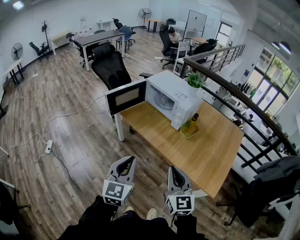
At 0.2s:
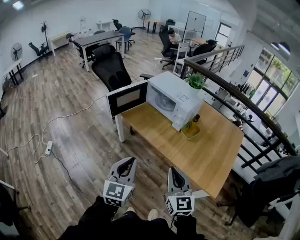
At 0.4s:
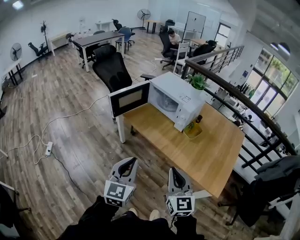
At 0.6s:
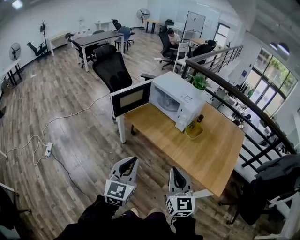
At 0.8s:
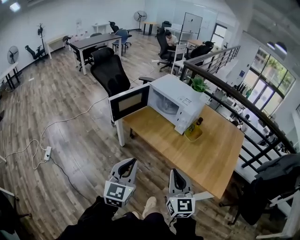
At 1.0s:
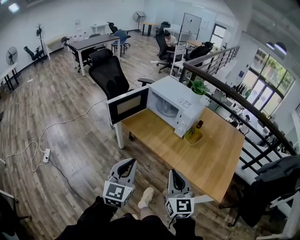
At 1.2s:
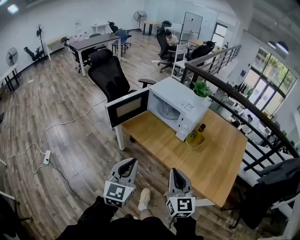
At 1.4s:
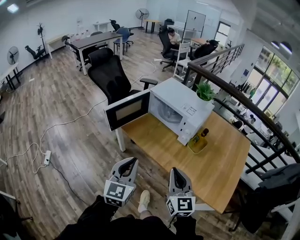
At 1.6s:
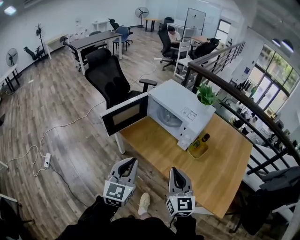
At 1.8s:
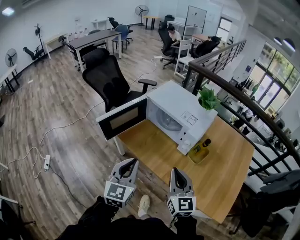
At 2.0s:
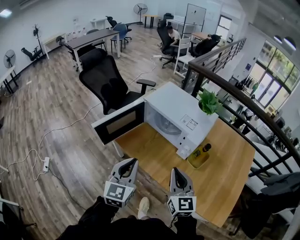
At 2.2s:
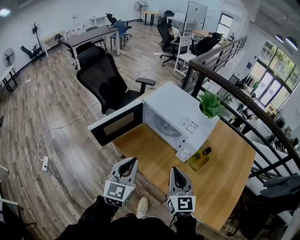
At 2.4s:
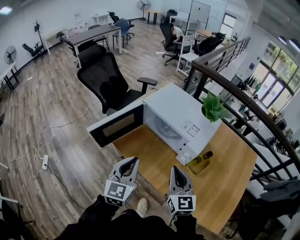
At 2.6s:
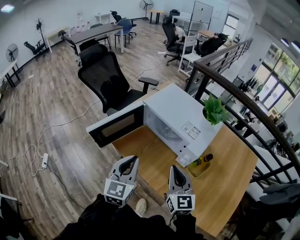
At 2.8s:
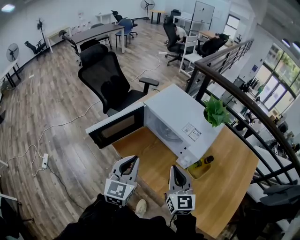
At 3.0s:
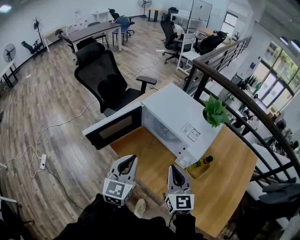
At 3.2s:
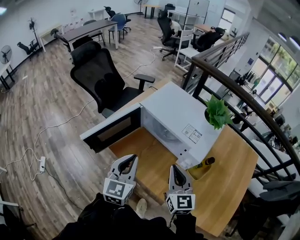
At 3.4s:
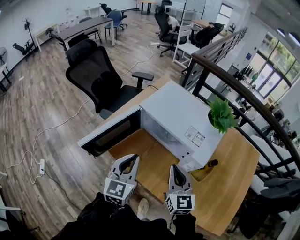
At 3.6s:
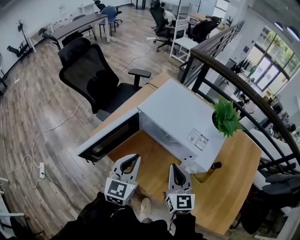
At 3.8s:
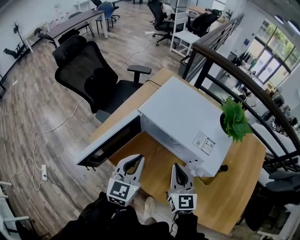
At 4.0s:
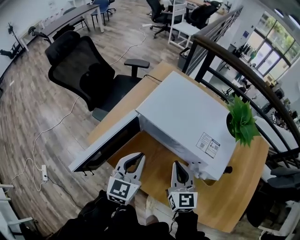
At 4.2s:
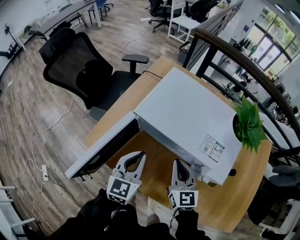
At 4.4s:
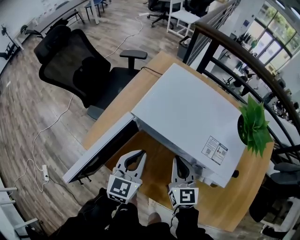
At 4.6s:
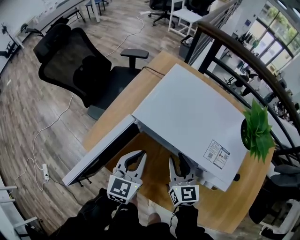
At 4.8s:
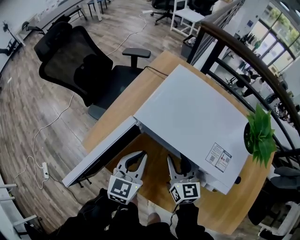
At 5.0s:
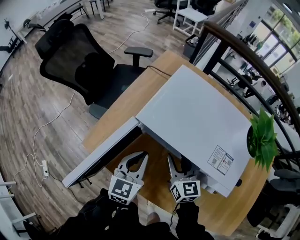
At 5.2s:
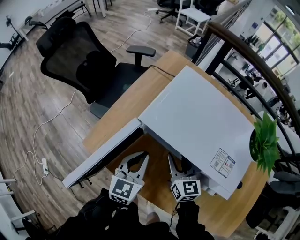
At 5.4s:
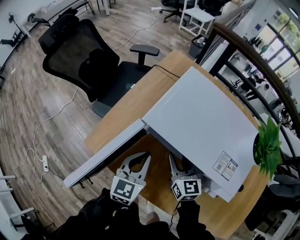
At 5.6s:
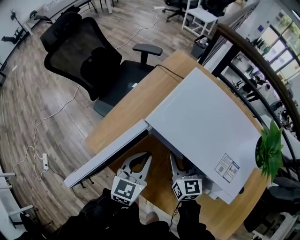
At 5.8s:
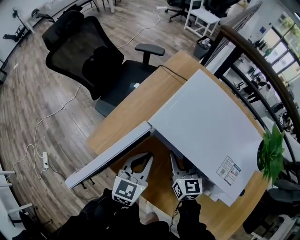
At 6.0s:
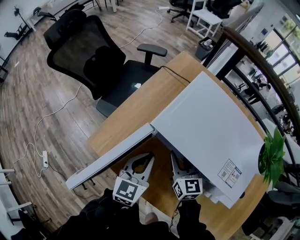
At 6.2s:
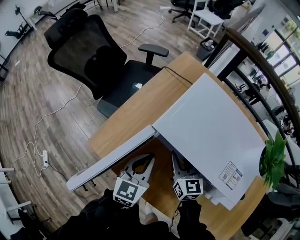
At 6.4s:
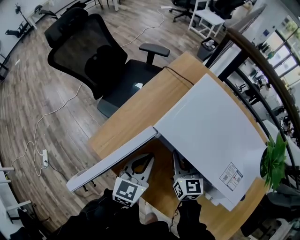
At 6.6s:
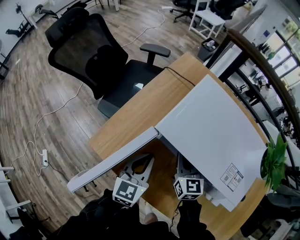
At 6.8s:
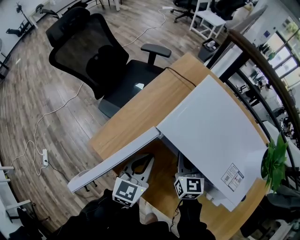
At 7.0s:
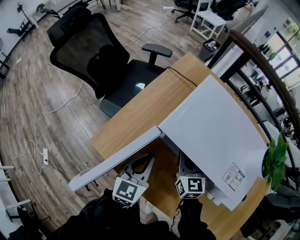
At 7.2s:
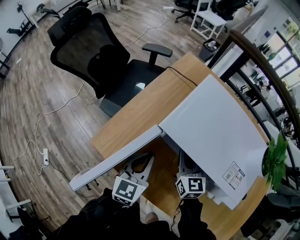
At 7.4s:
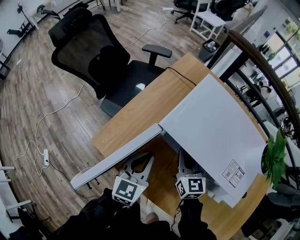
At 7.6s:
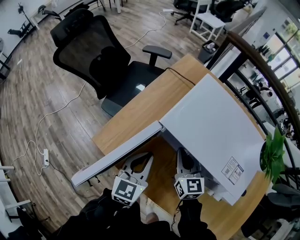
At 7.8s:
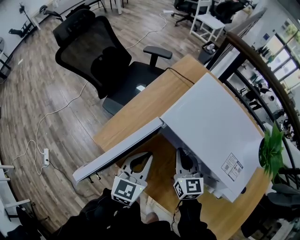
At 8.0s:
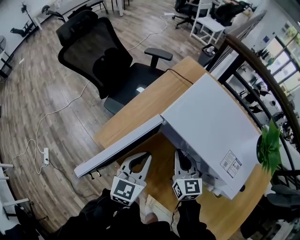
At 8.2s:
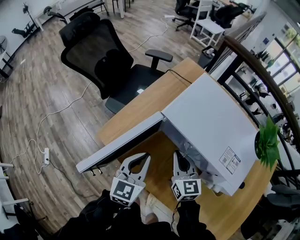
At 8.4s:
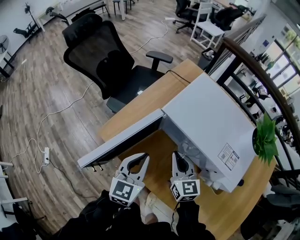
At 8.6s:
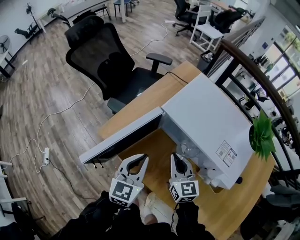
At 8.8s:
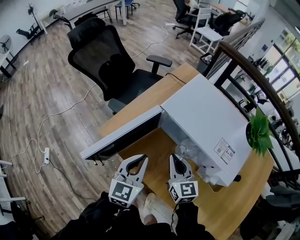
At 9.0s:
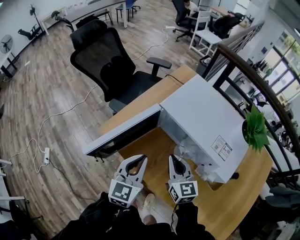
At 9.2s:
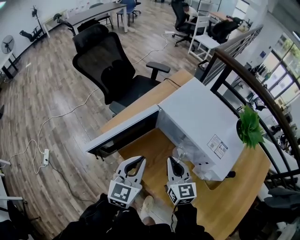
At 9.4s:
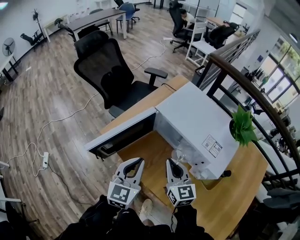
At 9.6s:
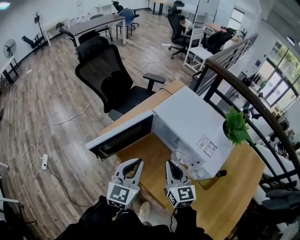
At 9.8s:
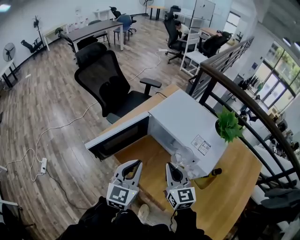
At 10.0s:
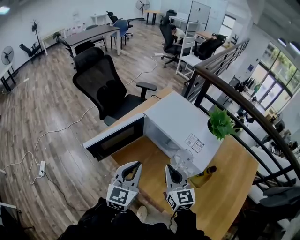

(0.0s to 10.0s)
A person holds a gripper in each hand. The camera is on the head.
0.0s - 1.4s: The left gripper heads forward, covering approximately 15 cm. The right gripper heads forward and to the left, covering roughly 15 cm.
1.4s - 2.8s: The grippers both shift forward by approximately 25 cm.
2.8s - 4.2s: Both grippers move forward and downward, some 25 cm.
4.2s - 5.8s: The left gripper ends up approximately 5 cm from where it was; the right gripper travels forward, downward and to the left by some 15 cm, and opens its fingers.
5.8s - 7.2s: The right gripper closes its fingers.
7.2s - 8.6s: The two grippers go approximately 10 cm backward and upward.
8.6s - 10.0s: Both grippers travel together backward, upward and to the right, approximately 20 cm.

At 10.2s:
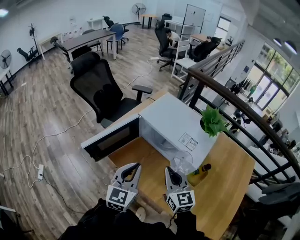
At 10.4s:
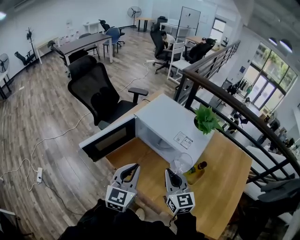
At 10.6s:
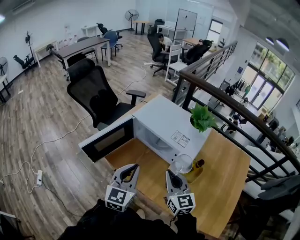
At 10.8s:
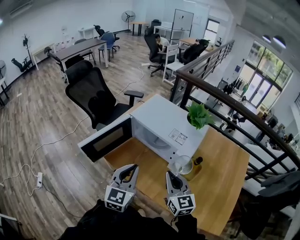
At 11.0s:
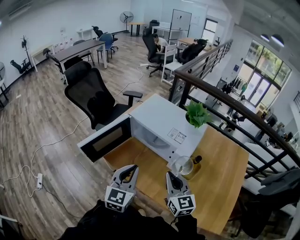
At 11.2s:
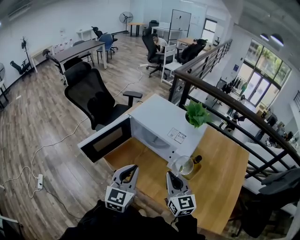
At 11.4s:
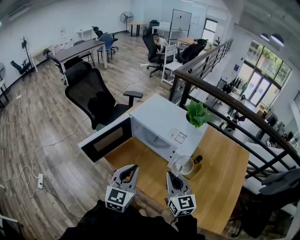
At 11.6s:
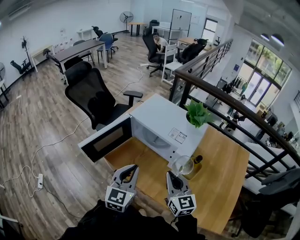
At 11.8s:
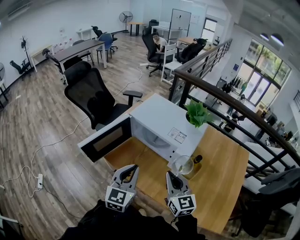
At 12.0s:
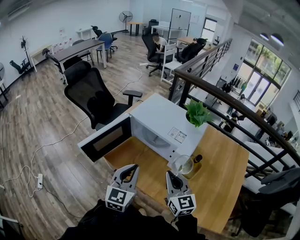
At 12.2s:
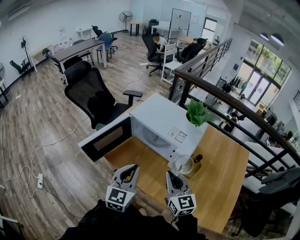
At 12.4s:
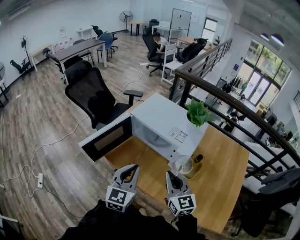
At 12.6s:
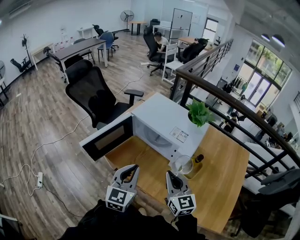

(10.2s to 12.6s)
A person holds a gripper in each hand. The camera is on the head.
10.2s - 11.4s: The grippers both shift backward by about 5 cm.
11.4s - 12.6s: The two grippers keep their place.

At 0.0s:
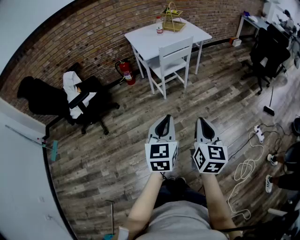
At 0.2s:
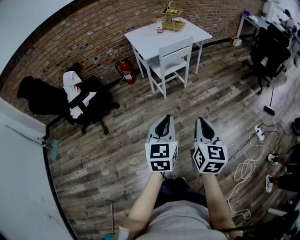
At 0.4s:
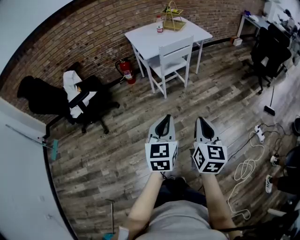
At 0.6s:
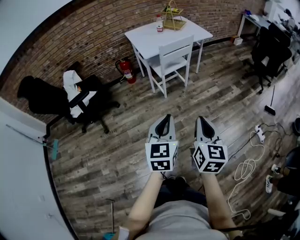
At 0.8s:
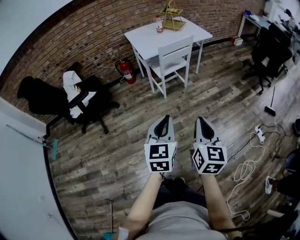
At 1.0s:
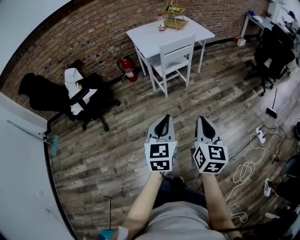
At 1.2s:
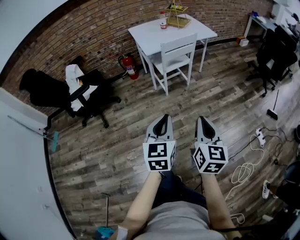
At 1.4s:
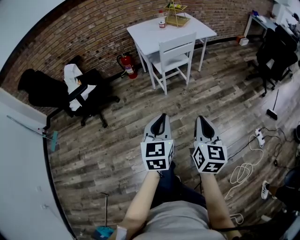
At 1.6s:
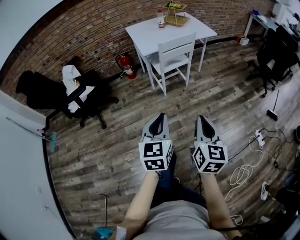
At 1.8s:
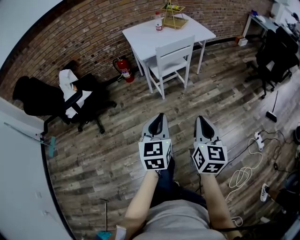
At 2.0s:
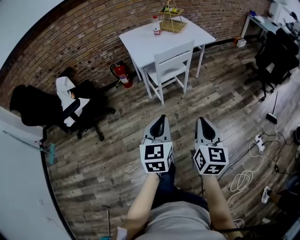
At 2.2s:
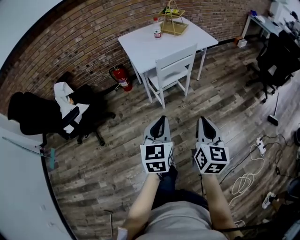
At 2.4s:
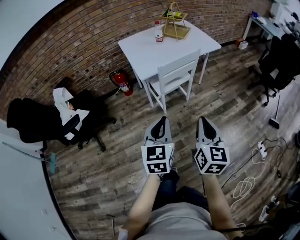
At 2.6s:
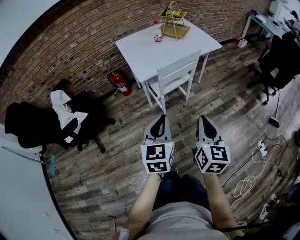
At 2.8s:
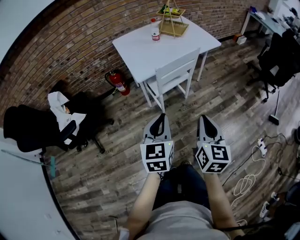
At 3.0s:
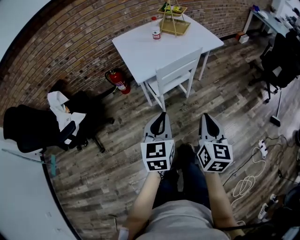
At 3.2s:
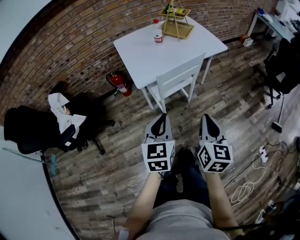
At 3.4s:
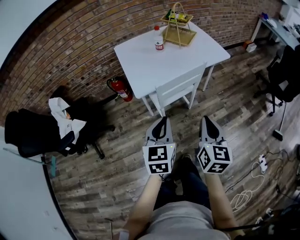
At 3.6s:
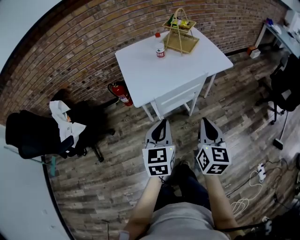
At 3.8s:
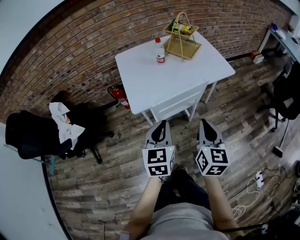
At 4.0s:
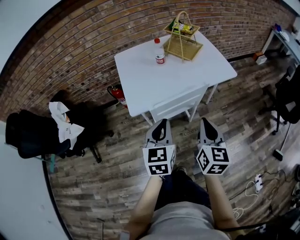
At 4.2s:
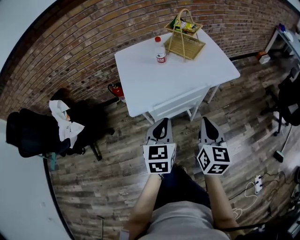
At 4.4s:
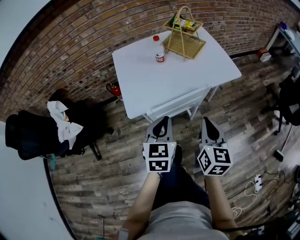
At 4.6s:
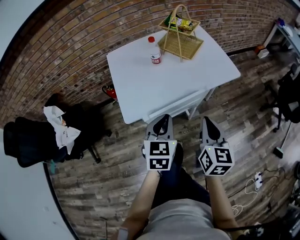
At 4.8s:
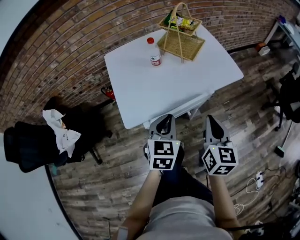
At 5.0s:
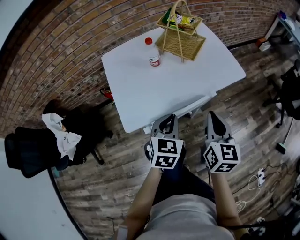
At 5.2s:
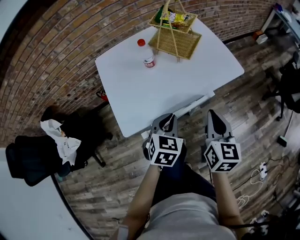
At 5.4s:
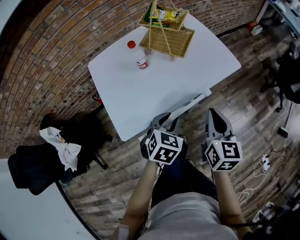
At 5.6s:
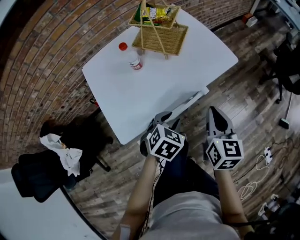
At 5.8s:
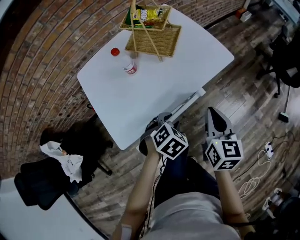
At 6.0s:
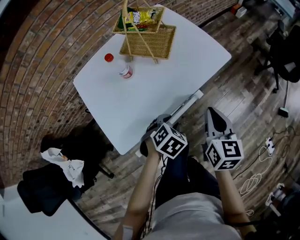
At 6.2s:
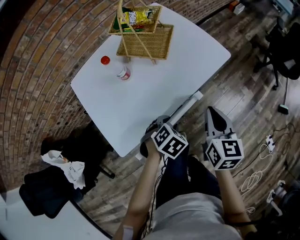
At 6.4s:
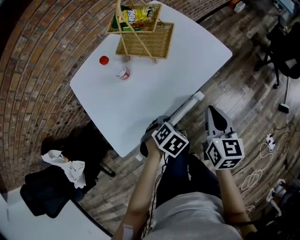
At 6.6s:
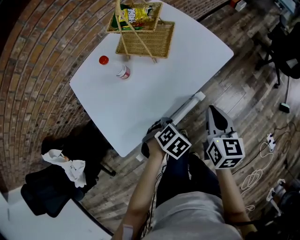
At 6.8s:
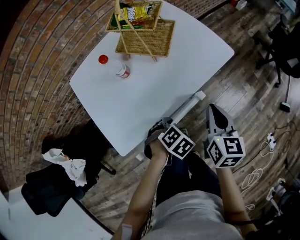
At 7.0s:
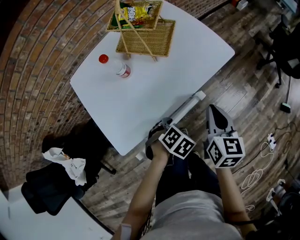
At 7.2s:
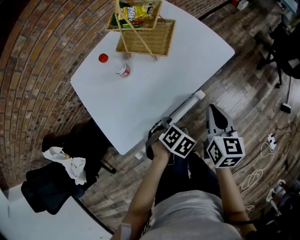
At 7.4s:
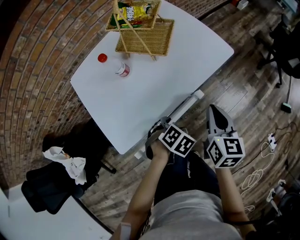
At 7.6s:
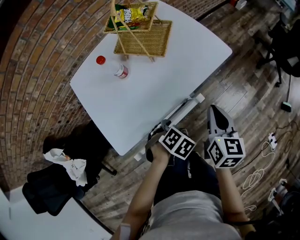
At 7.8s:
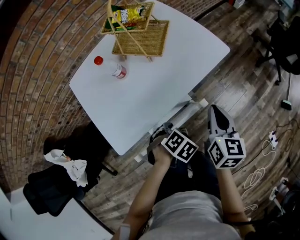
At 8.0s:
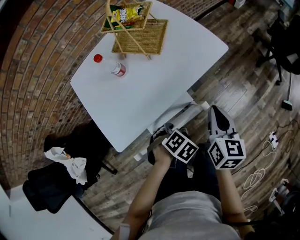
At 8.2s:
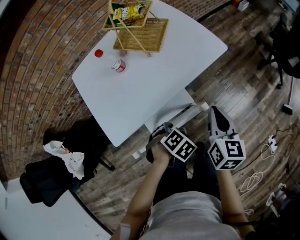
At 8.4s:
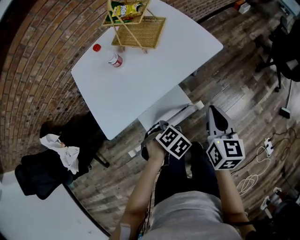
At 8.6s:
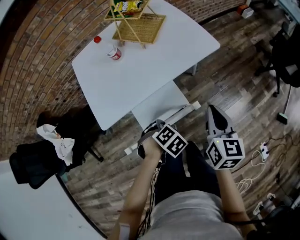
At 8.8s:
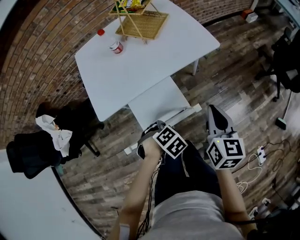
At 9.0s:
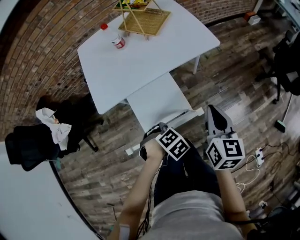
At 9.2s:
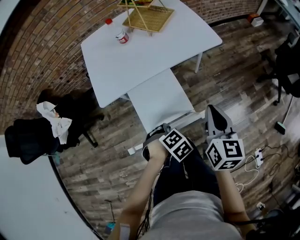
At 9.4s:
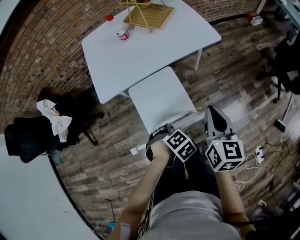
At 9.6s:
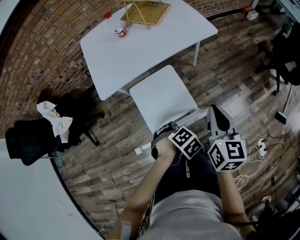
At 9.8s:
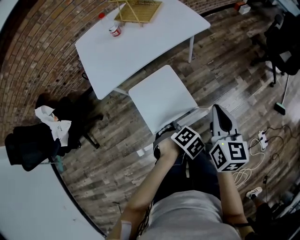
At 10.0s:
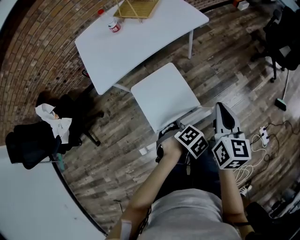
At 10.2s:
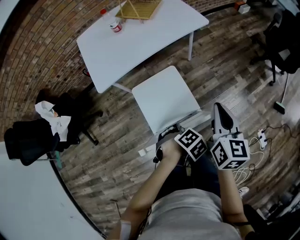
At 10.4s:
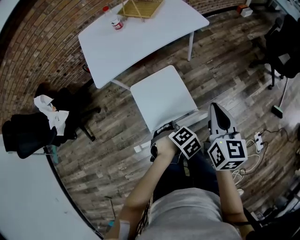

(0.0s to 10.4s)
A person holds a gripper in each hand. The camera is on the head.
0.0s - 1.4s: The right gripper moves roughly 5 cm.
1.4s - 3.0s: The grippers both shift forward by roughly 35 cm.
3.0s - 4.4s: Both grippers move forward, roughly 30 cm.
4.4s - 6.0s: The left gripper is displaced downward by some 15 cm, tilts its fingers some 40 degrees downward, and opens; the right gripper changes place by some 15 cm.
6.0s - 7.4s: The grippers make only small movements.
7.4s - 9.0s: The right gripper moves about 20 cm. The left gripper ends up about 20 cm from where it was.
9.0s - 10.4s: The right gripper moves some 15 cm; the left gripper shifts by some 15 cm.

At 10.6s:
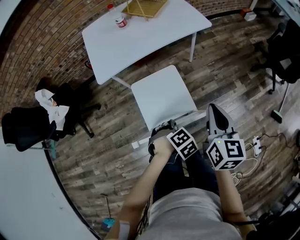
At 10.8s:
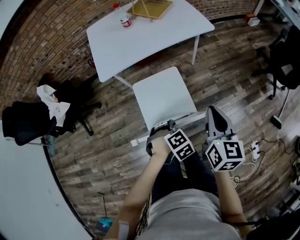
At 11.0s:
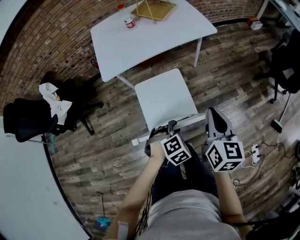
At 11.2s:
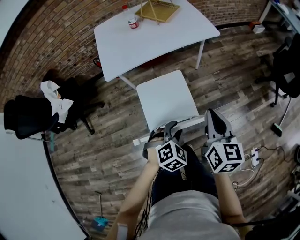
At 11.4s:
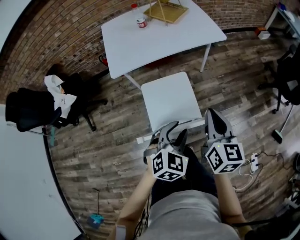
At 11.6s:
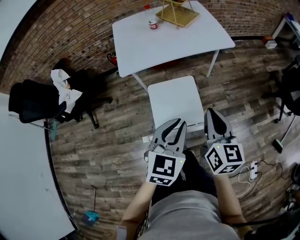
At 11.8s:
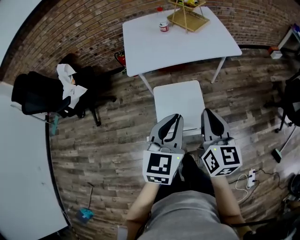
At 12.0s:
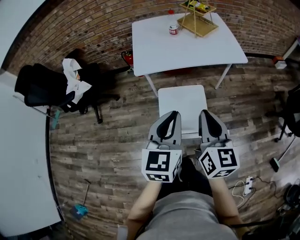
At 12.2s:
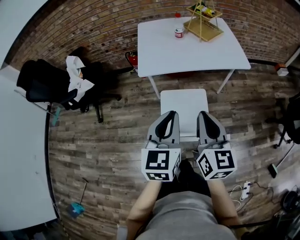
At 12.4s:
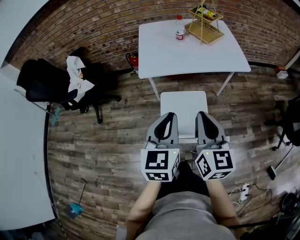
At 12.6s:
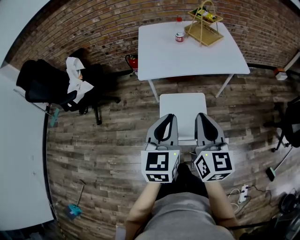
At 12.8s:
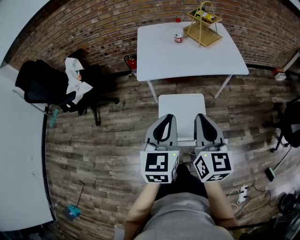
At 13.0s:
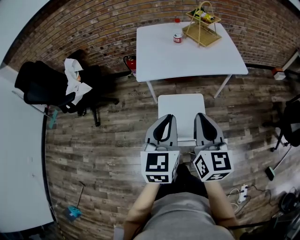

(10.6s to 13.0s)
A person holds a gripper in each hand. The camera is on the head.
10.6s - 11.8s: The left gripper travels upward by approximately 25 cm, and points its fingers about 60 degrees further upward. Meanwhile the right gripper moves approximately 10 cm.
11.8s - 13.0s: The grippers both shift to the left by approximately 5 cm.
